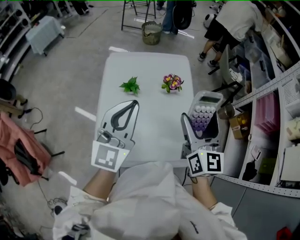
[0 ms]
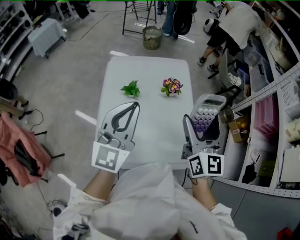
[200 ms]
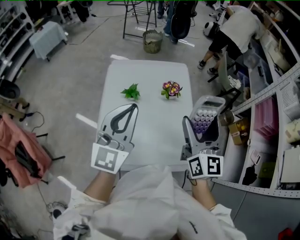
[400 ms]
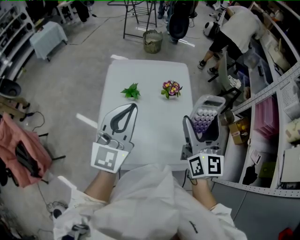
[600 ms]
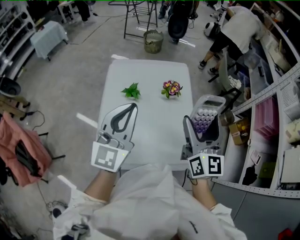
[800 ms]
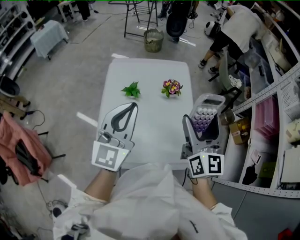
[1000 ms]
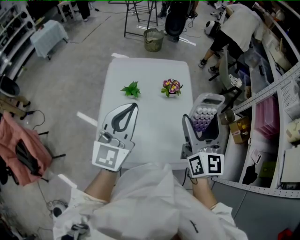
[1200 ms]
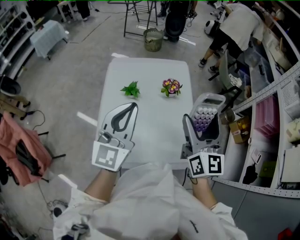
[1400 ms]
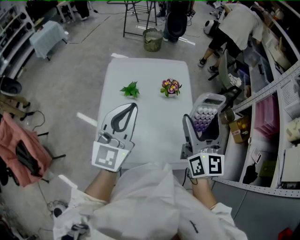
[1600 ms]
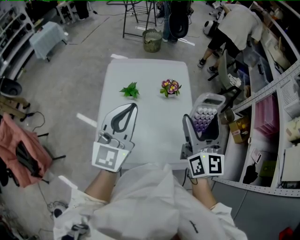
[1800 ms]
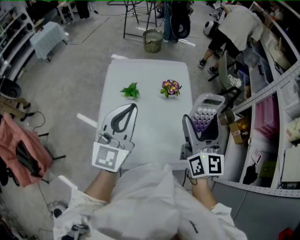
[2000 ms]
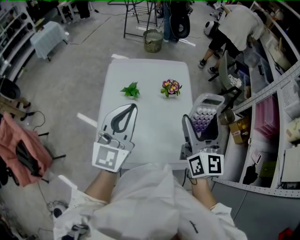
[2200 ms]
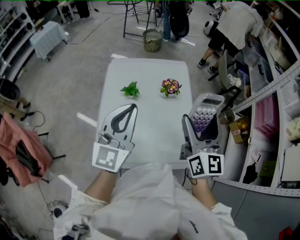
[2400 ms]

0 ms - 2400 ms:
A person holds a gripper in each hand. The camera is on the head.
0 ms - 1200 ms: The grippers move only a little.
1200 ms - 2400 ms: Neither gripper changes place.

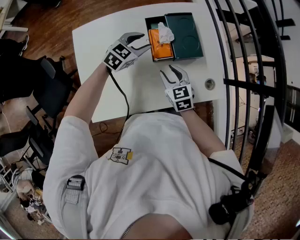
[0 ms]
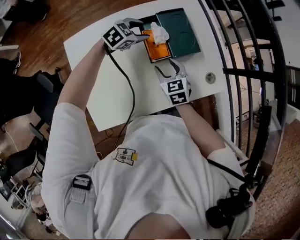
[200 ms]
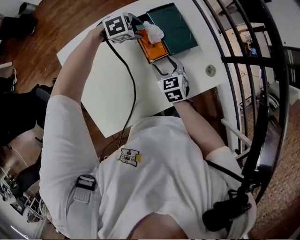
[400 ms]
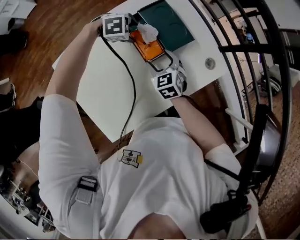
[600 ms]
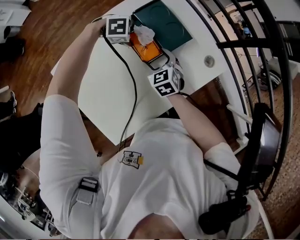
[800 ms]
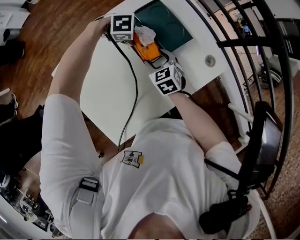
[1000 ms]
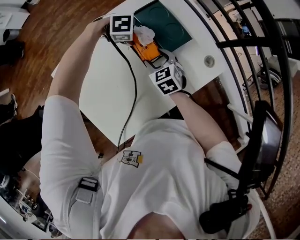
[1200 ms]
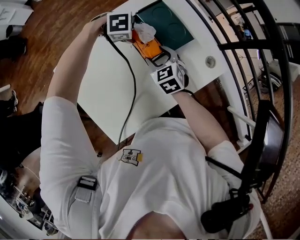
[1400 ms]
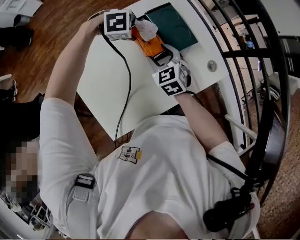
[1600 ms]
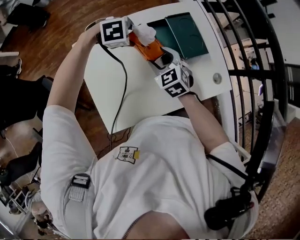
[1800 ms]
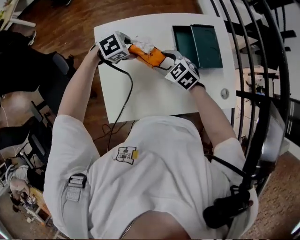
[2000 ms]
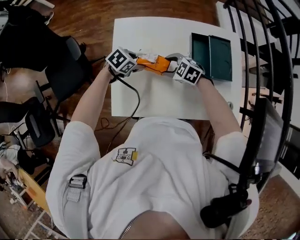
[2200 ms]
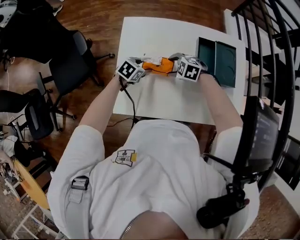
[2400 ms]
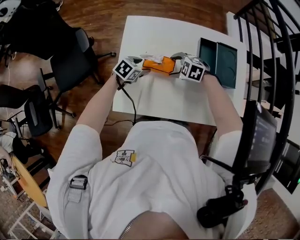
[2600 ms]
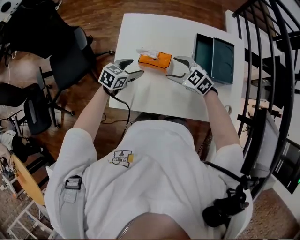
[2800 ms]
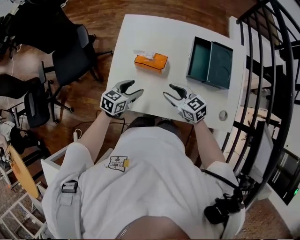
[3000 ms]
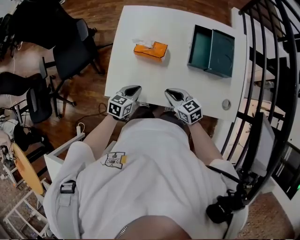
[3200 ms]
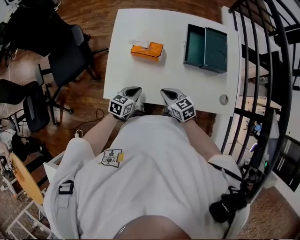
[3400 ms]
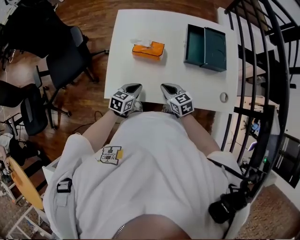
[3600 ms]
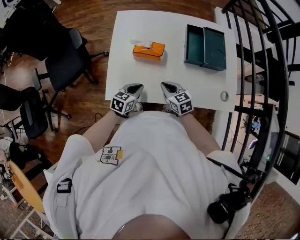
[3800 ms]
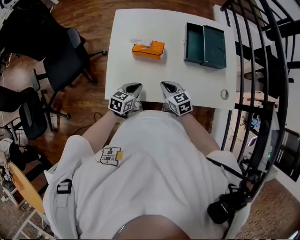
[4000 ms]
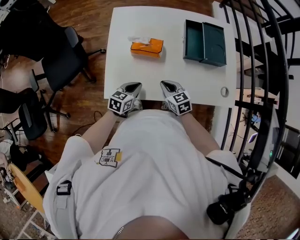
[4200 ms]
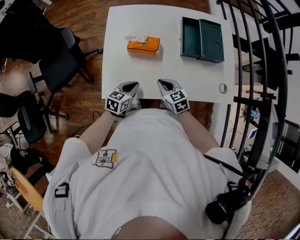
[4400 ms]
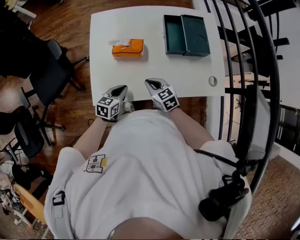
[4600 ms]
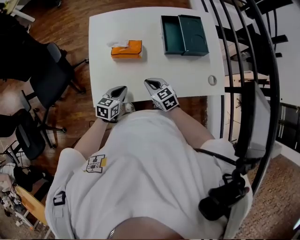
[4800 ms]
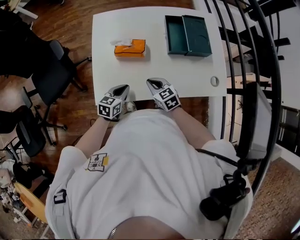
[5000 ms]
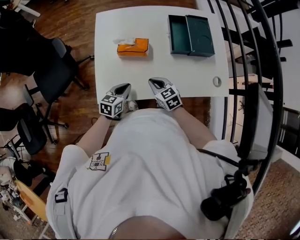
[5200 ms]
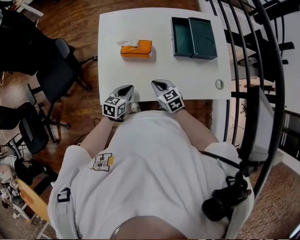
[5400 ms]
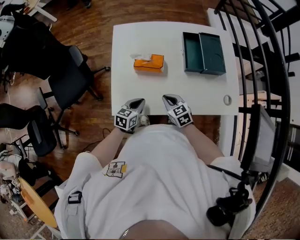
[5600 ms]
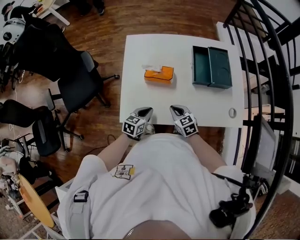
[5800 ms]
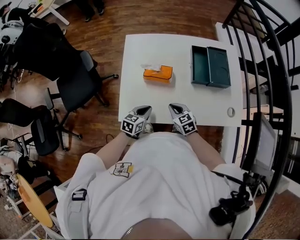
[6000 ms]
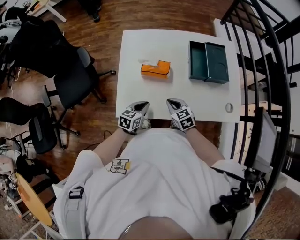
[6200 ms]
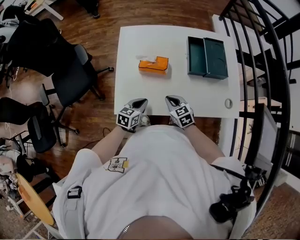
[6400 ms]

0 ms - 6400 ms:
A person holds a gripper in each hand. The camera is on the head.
0 ms - 1600 ms: The right gripper moves approximately 10 cm. Meanwhile the left gripper reaches approximately 10 cm downward, then returns, and angles its fingers downward, by approximately 40 degrees.
1600 ms - 3200 ms: The left gripper shifts by roughly 35 cm, rotates around the line of its fingers by roughly 90 degrees, counterclockwise from behind, and closes up. Meanwhile the right gripper swings up and down, about 10 cm each way, with 2 reversals, swivels approximately 50 degrees, and closes up.
3200 ms - 4800 ms: The grippers stay close to where they were, moving slightly.
4800 ms - 6400 ms: Both grippers stay about where they are.

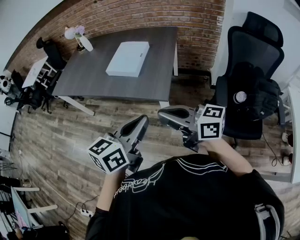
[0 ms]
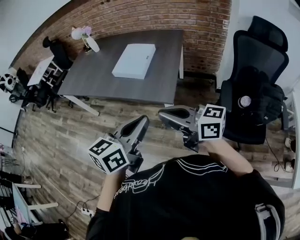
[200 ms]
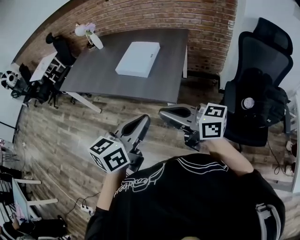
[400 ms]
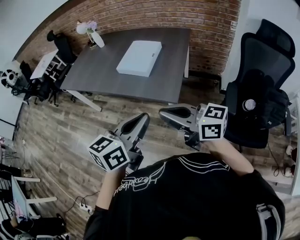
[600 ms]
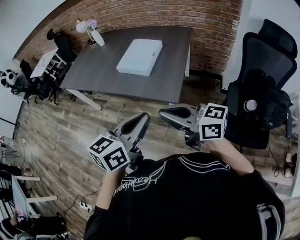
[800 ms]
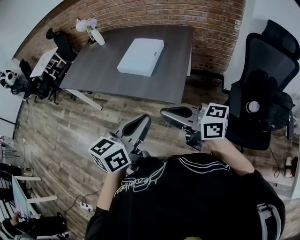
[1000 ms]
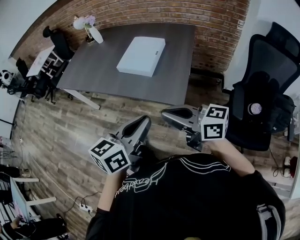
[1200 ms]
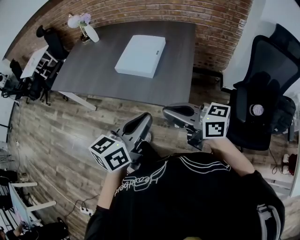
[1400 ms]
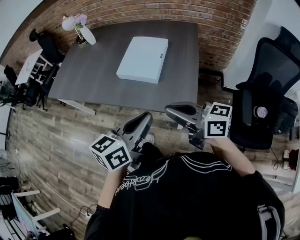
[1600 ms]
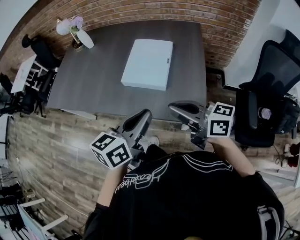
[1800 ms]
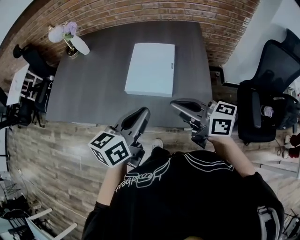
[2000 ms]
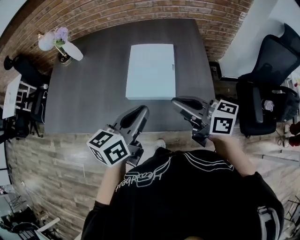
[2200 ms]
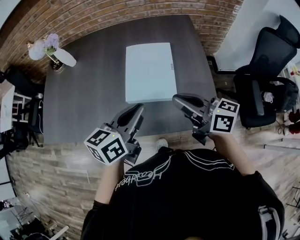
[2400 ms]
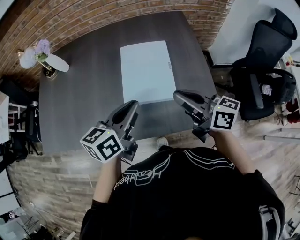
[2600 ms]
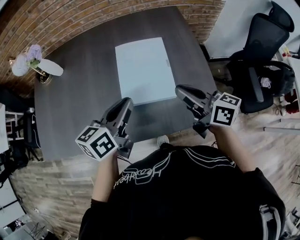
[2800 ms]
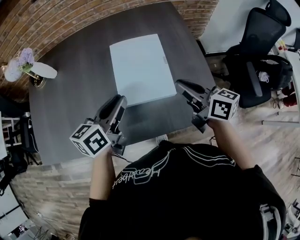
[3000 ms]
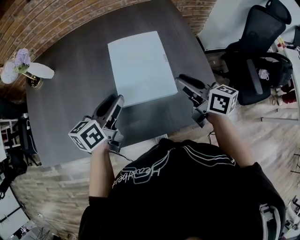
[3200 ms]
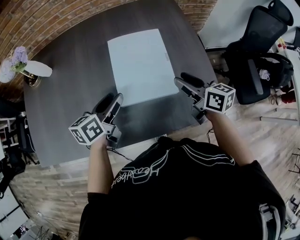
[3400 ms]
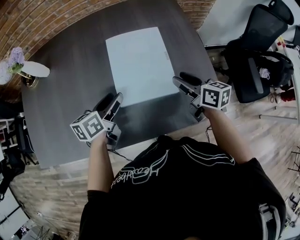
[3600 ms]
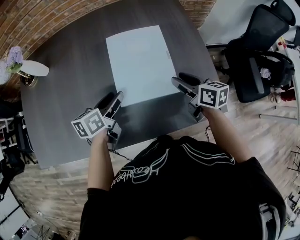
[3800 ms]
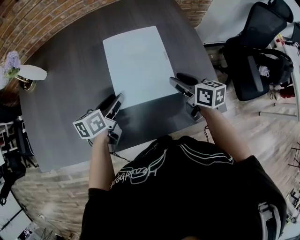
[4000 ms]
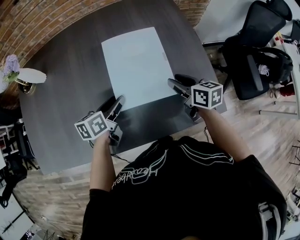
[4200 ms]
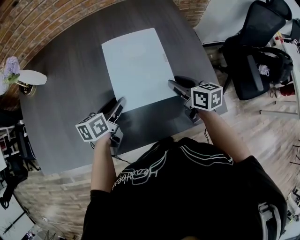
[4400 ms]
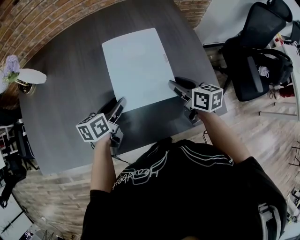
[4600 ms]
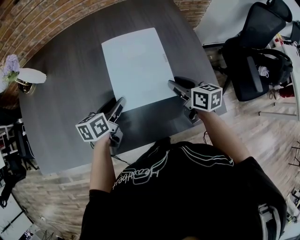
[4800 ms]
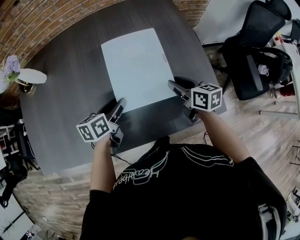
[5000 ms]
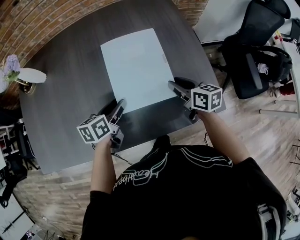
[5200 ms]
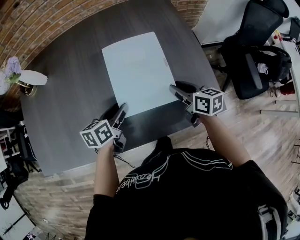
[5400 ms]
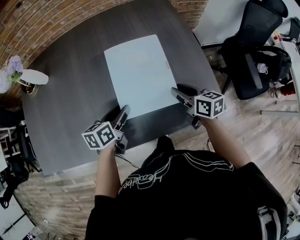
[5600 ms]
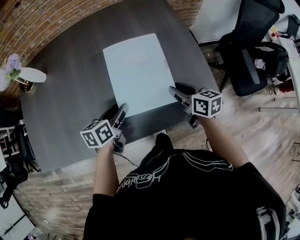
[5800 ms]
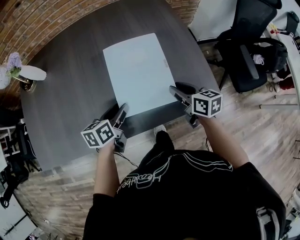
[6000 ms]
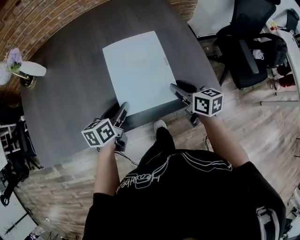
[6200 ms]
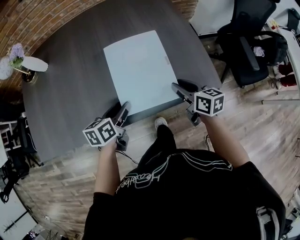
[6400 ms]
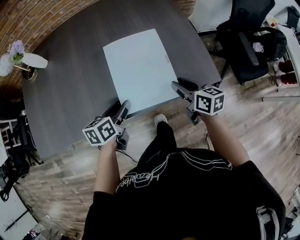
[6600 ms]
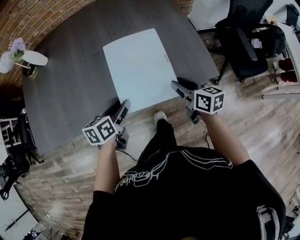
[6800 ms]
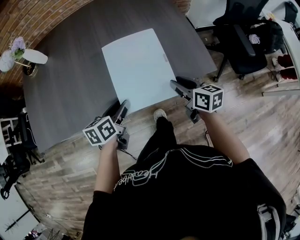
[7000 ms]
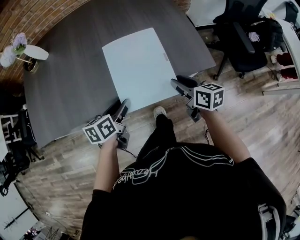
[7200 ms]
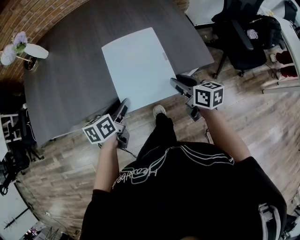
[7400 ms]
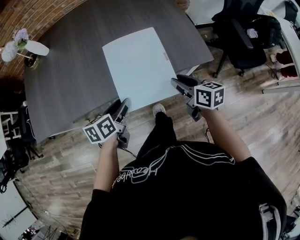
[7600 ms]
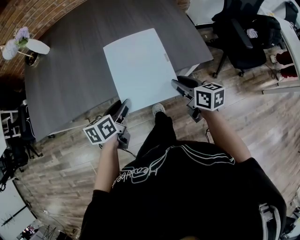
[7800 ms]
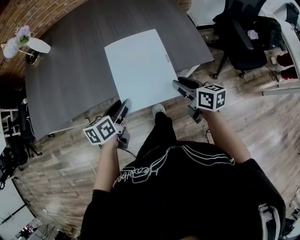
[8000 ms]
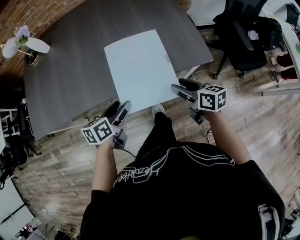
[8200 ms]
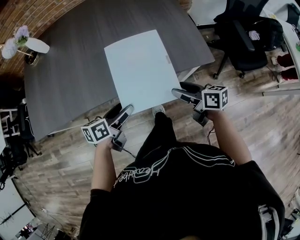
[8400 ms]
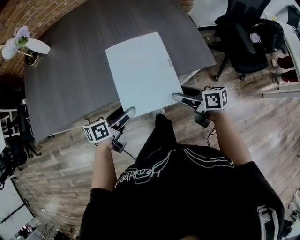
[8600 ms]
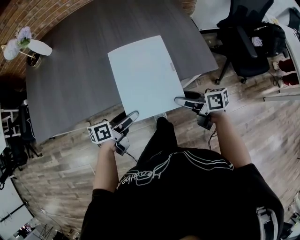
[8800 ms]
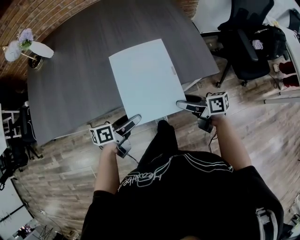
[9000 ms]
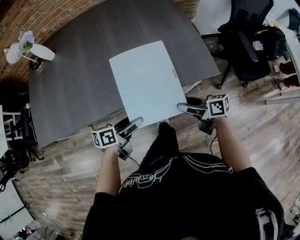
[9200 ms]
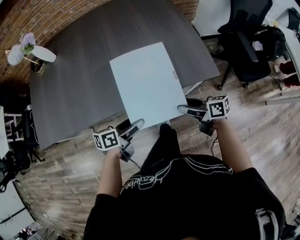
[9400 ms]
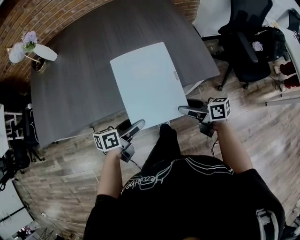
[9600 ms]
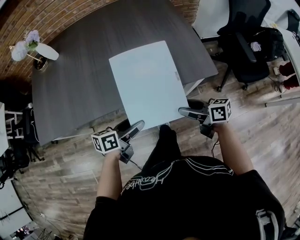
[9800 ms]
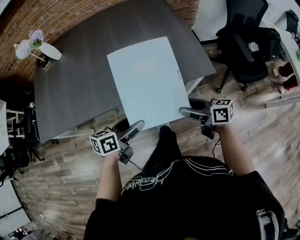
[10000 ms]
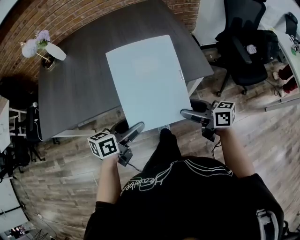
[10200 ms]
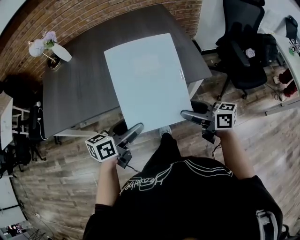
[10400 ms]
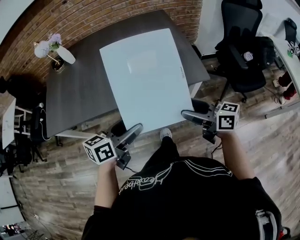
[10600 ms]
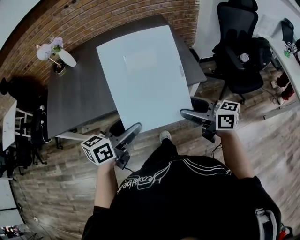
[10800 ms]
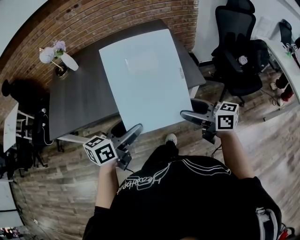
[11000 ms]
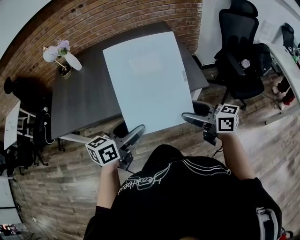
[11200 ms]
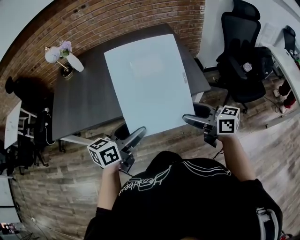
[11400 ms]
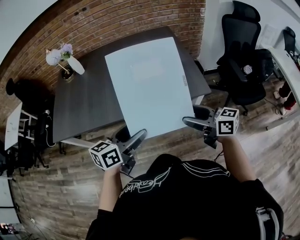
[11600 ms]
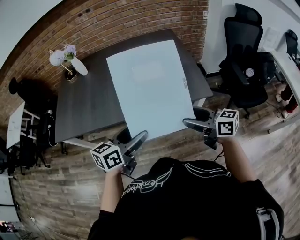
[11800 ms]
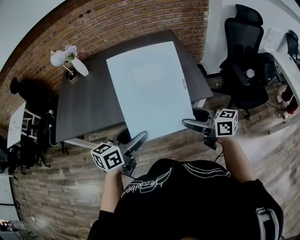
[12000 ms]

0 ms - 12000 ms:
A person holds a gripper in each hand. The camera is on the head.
0 ms - 1600 ms: The right gripper travels forward by about 20 cm, while the left gripper moves forward and to the left, about 20 cm.
1600 ms - 3000 ms: The right gripper shifts by approximately 30 cm, and swivels approximately 40 degrees, while the left gripper ends up about 40 cm from where it was.
3000 ms - 4400 ms: The grippers both shift downward by about 15 cm. The right gripper opens; the left gripper opens its fingers.
4400 ms - 6000 ms: The two grippers go roughly 10 cm backward.
6000 ms - 7600 ms: Both grippers move backward, roughly 20 cm.
7600 ms - 9000 ms: The left gripper changes its angle by about 30 degrees, and opens its fingers. The right gripper rotates roughly 30 degrees, and opens its fingers.
9000 ms - 10400 ms: Both grippers move upward and backward, some 15 cm. The right gripper swivels some 20 degrees. Meanwhile the left gripper swivels approximately 20 degrees.
10400 ms - 12000 ms: Both grippers move upward, about 10 cm.

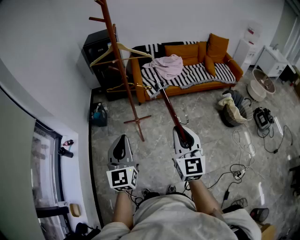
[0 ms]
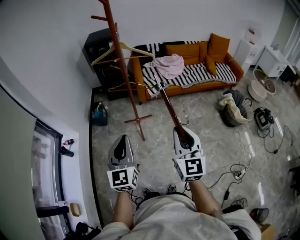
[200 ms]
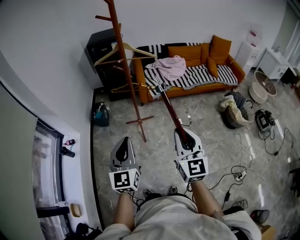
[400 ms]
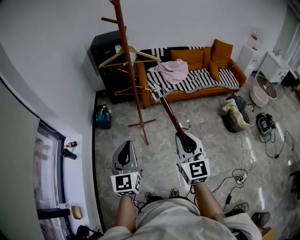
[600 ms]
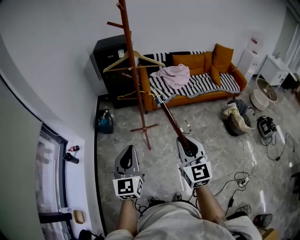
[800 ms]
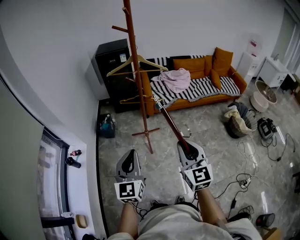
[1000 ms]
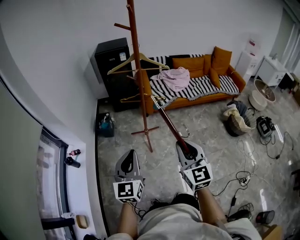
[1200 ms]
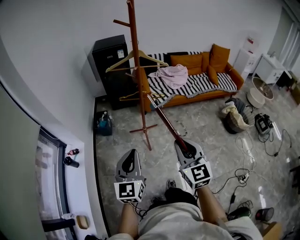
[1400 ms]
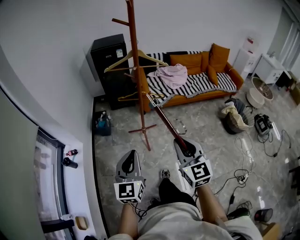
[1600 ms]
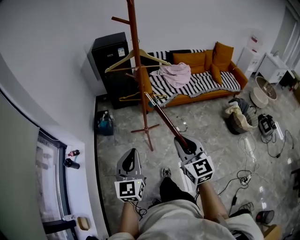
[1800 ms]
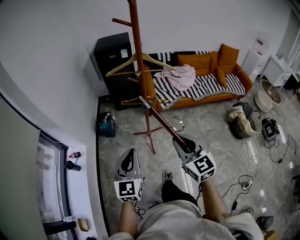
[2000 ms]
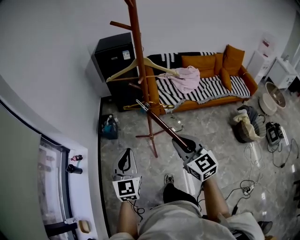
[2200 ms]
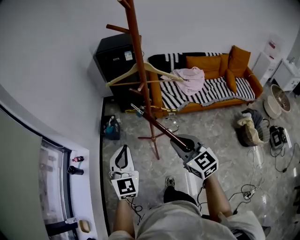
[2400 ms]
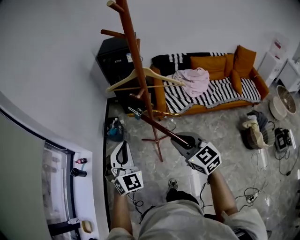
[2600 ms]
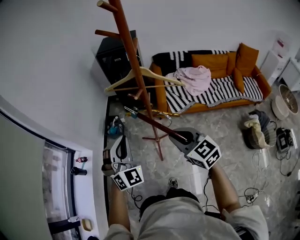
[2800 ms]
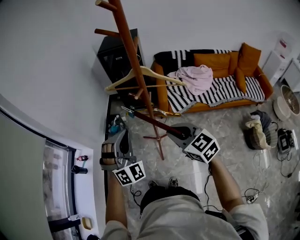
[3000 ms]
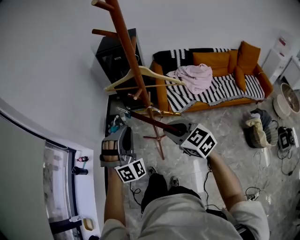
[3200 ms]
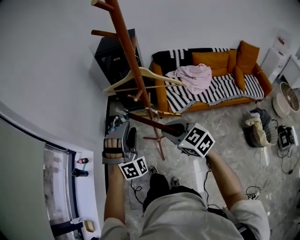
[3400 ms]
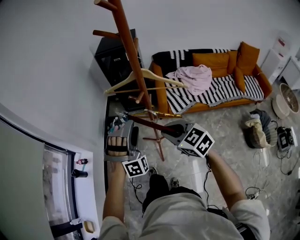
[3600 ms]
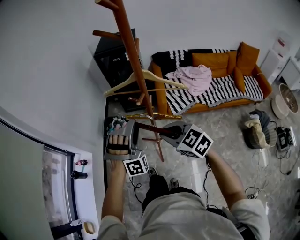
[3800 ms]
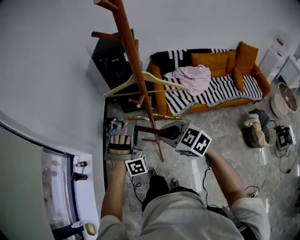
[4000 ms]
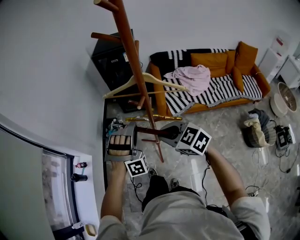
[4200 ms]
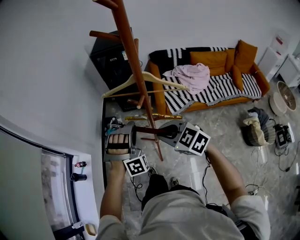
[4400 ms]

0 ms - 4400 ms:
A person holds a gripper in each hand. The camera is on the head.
0 ms - 1400 ms: The grippers both shift to the left by some 10 cm.
1400 ms - 3000 ms: The left gripper changes place by about 30 cm, and rolls clockwise, seen from behind, by approximately 70 degrees, while the right gripper moves roughly 30 cm, and rotates about 40 degrees.
3000 ms - 4400 ms: The right gripper moves forward, roughly 5 cm. The left gripper shifts some 10 cm forward, downward and to the right, turns by roughly 30 degrees, and opens up.
